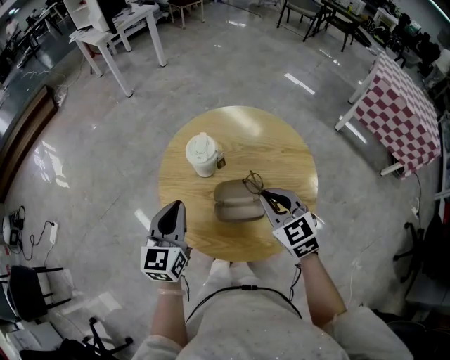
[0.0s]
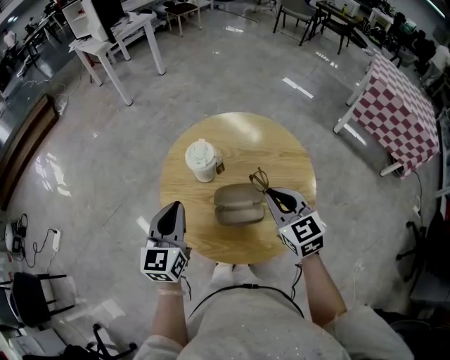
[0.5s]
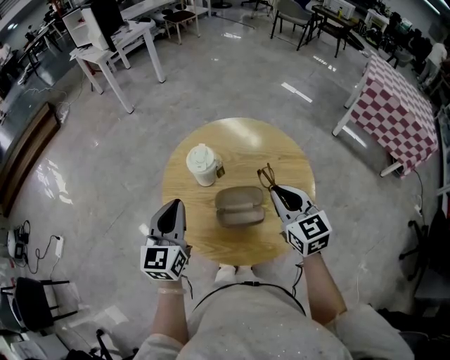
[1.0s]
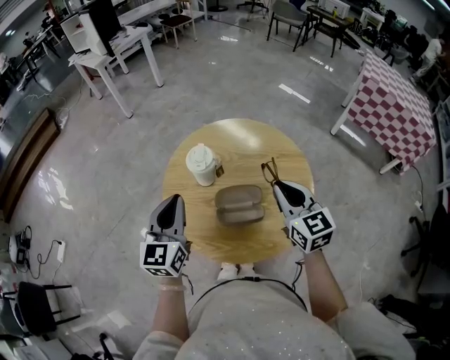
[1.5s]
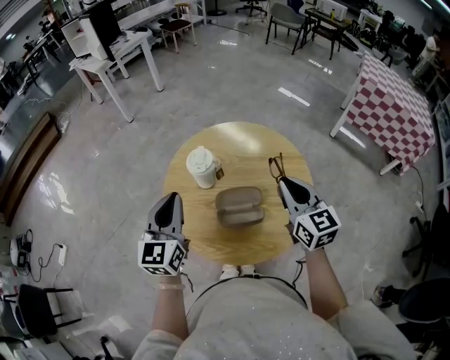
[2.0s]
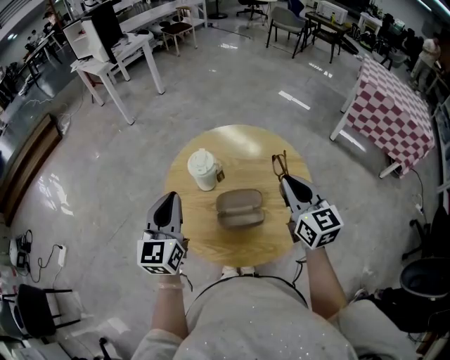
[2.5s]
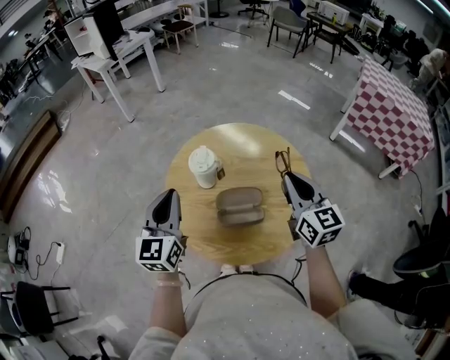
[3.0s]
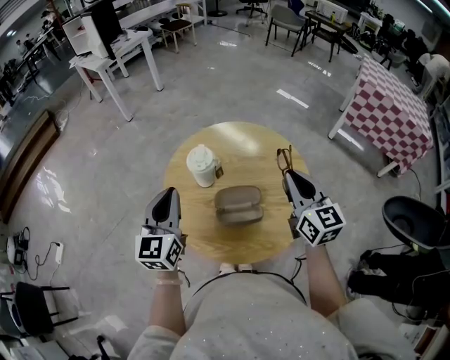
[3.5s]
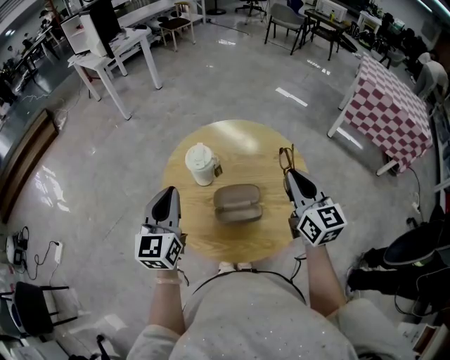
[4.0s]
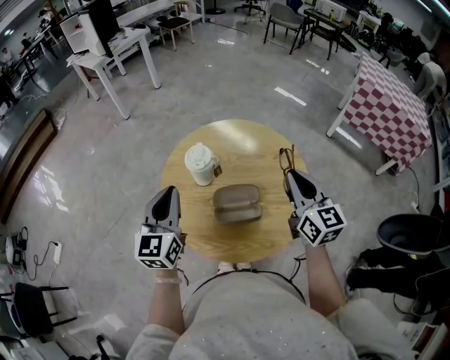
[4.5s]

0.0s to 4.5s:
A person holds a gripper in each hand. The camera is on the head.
0.0s to 2.0s: The left gripper goes roughly 5 cm upward. Meanwhile the right gripper is displaced upward and to the right by about 10 cm, and changes its angle by about 30 degrees.
2.0s to 4.5s: The grippers move only a little.

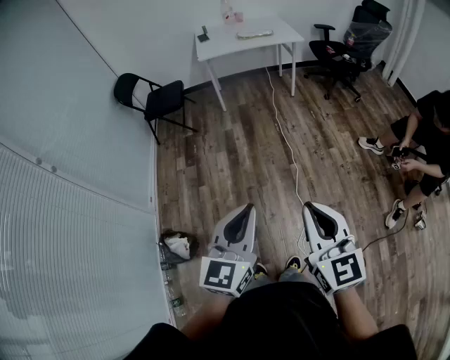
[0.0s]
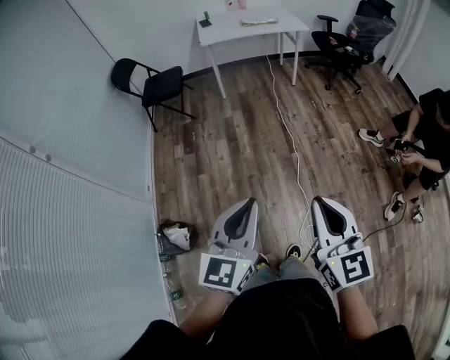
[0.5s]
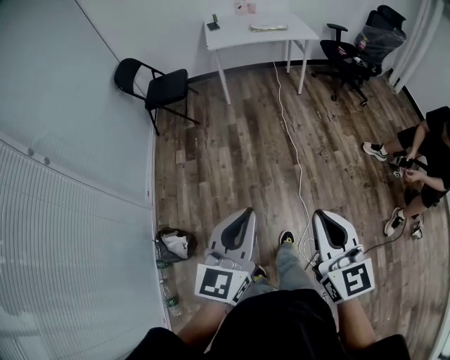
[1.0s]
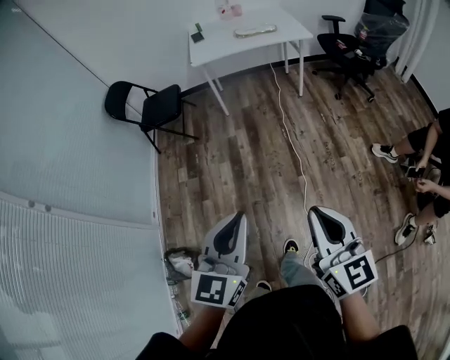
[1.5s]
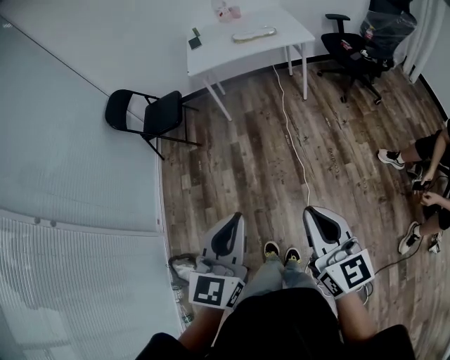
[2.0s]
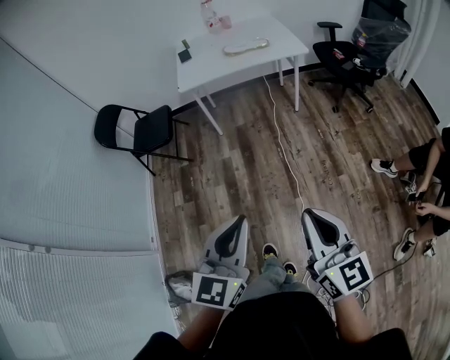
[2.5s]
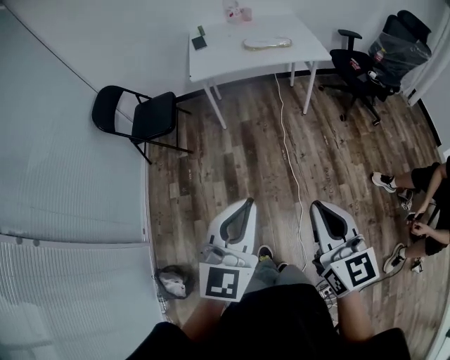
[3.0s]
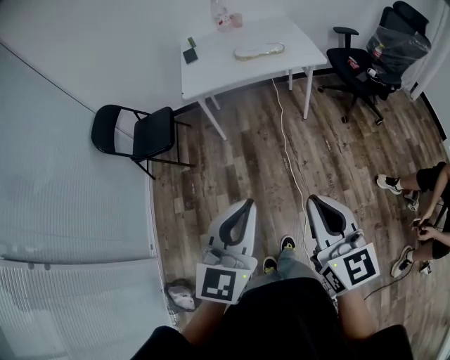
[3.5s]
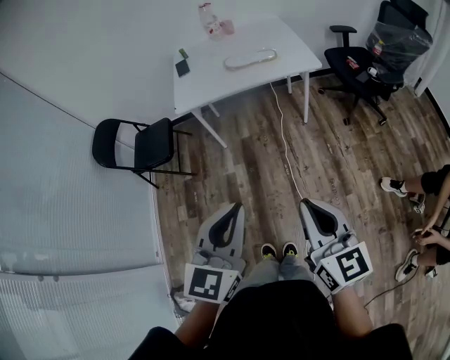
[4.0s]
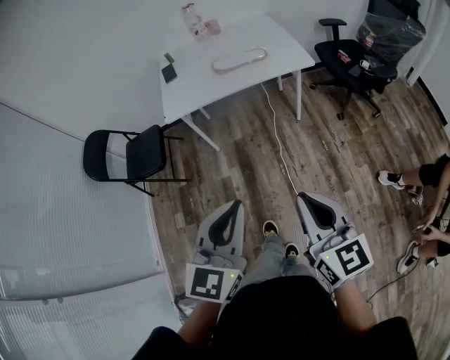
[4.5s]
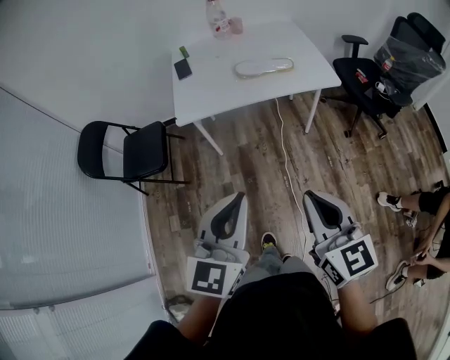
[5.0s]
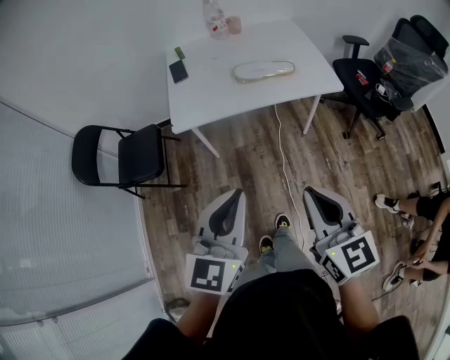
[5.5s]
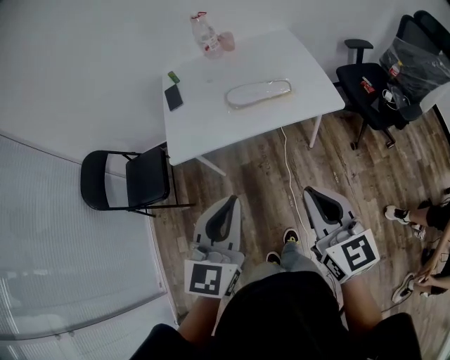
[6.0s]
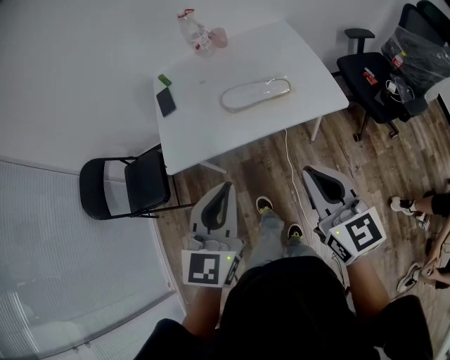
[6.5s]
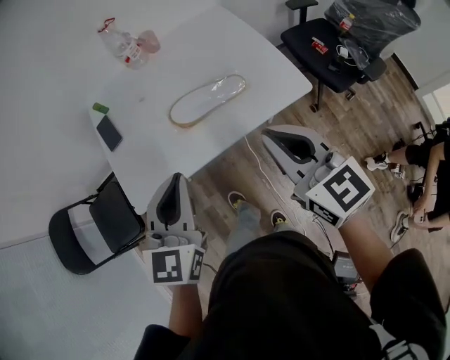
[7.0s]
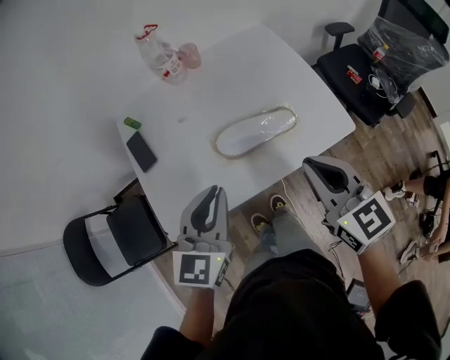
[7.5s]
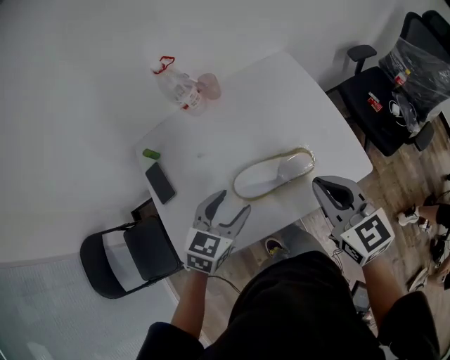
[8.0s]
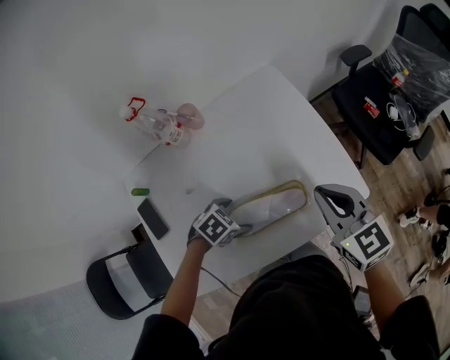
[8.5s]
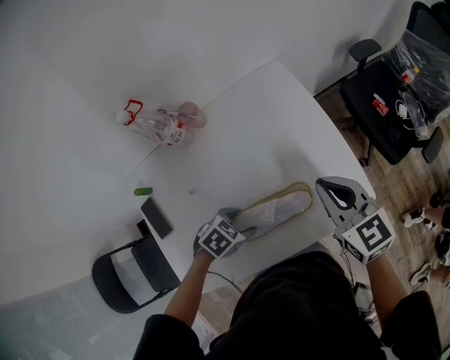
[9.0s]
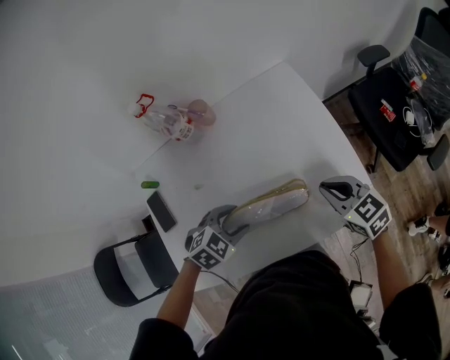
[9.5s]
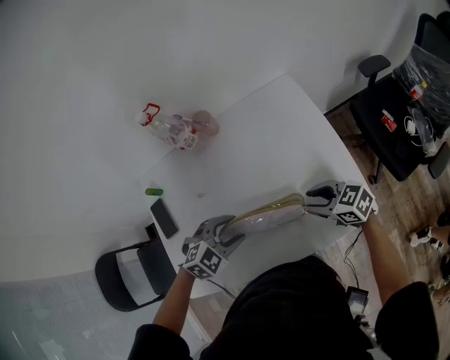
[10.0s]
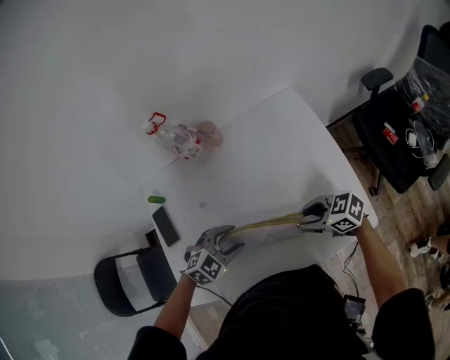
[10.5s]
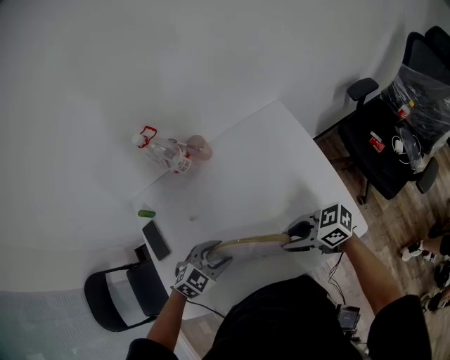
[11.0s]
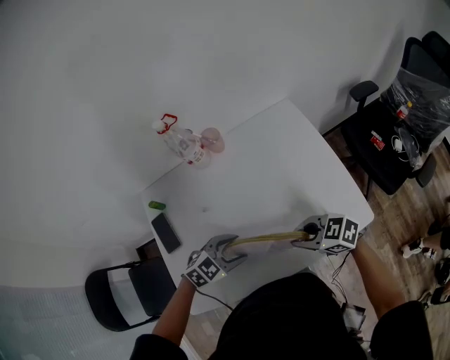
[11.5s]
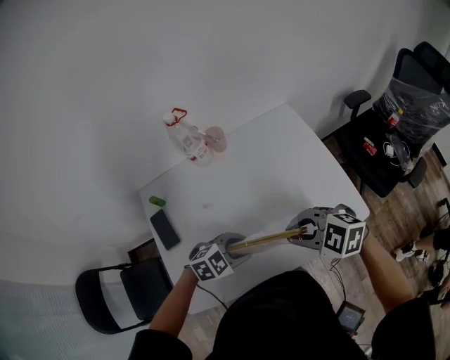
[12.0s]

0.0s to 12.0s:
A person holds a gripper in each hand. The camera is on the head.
0.0s to 2.0s: The two grippers go some 30 cm forward.
2.0s to 4.0s: Both grippers travel together forward, some 30 cm.
4.0s to 6.0s: The grippers both shift forward by approximately 35 cm.
6.0s to 8.0s: Both grippers are carried forward, approximately 40 cm. The left gripper rotates about 40 degrees, and opens its fingers.
8.0s to 10.0s: The right gripper shifts roughly 20 cm downward, rotates roughly 40 degrees, and opens its fingers. The left gripper moves downward, about 10 cm, changes its angle by roughly 40 degrees, and opens and closes again.
10.0s to 12.0s: The right gripper moves some 20 cm, turns by some 40 degrees, and closes, while the left gripper moves some 5 cm.

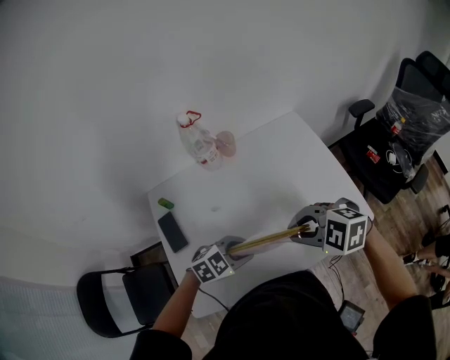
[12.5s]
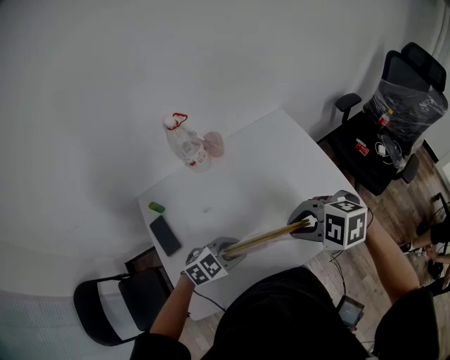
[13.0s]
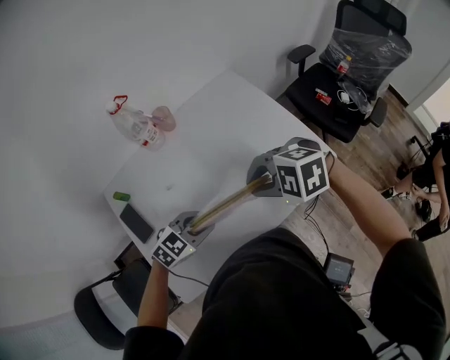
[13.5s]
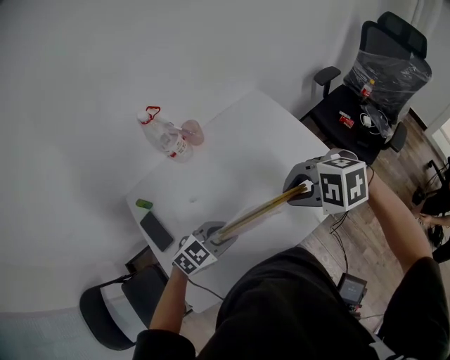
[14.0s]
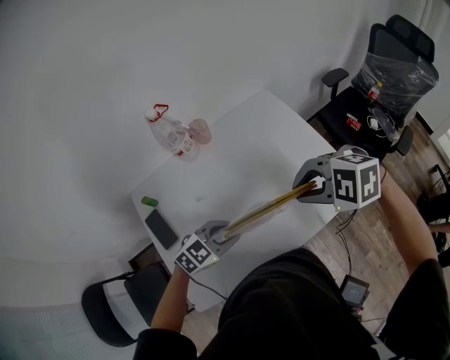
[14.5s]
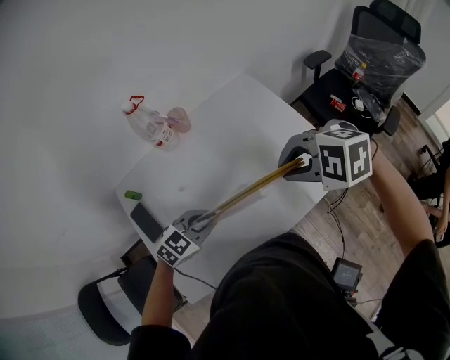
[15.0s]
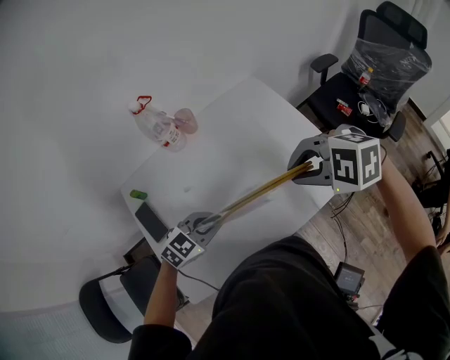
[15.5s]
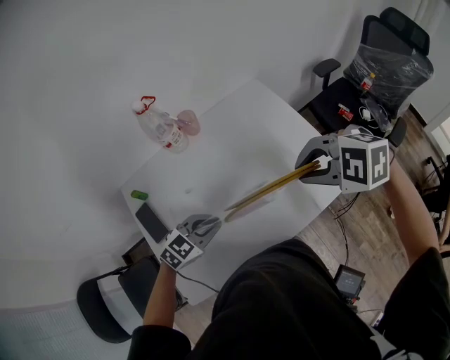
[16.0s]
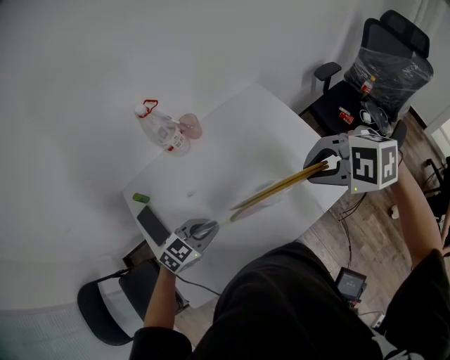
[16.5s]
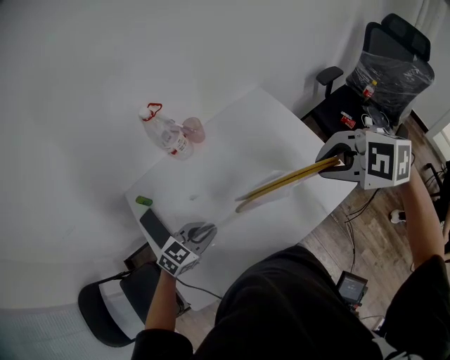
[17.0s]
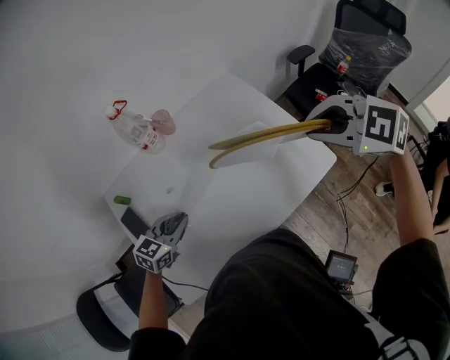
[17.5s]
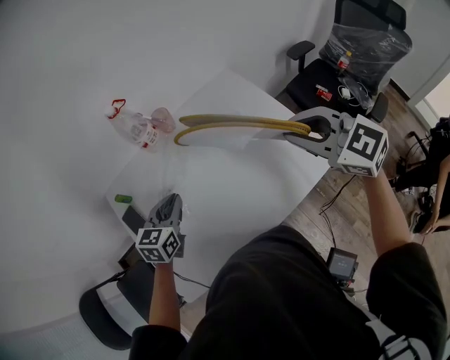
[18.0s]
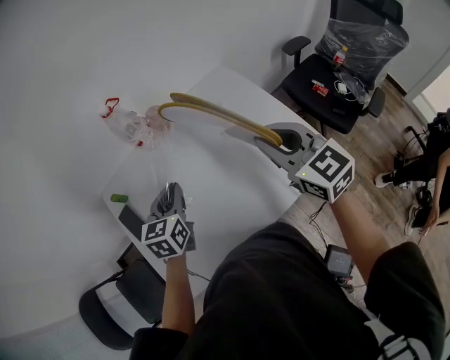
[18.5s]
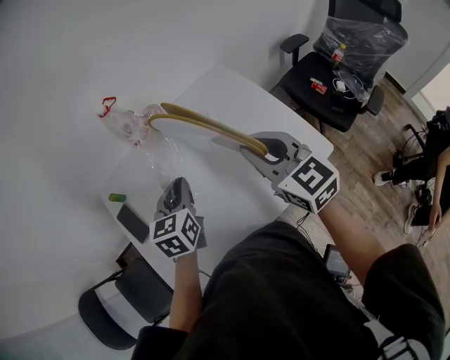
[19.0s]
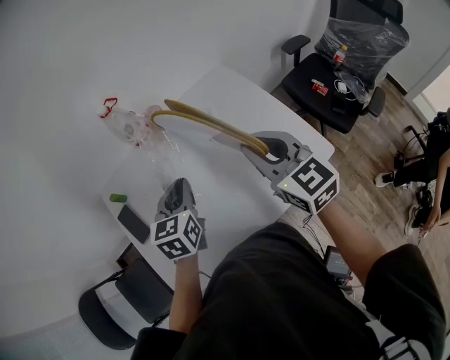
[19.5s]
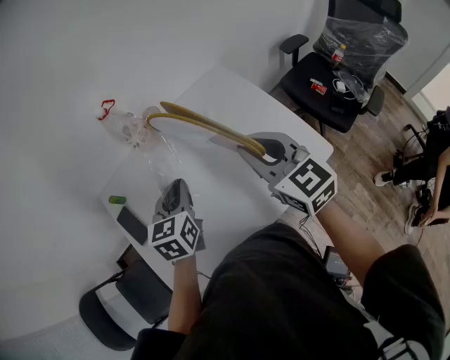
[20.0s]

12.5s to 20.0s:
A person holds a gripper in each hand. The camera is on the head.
12.5s to 14.5s: The right gripper changes place by approximately 5 cm.
14.5s to 16.5s: The right gripper shifts by about 5 cm.
16.5s to 18.0s: The left gripper ends up about 10 cm from where it was, and swivels about 40 degrees. Meanwhile the right gripper moves about 5 cm, and angles its fingers upward, by about 30 degrees.
18.0s to 20.0s: The right gripper shifts some 5 cm to the left, and rotates roughly 20 degrees, while the left gripper travels to the right by approximately 5 cm.

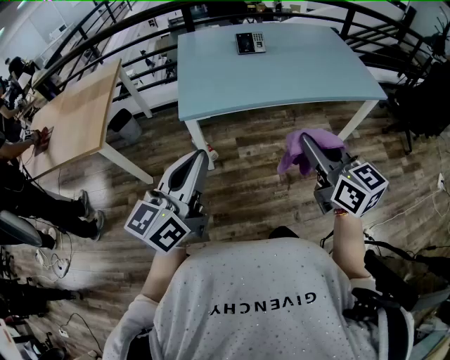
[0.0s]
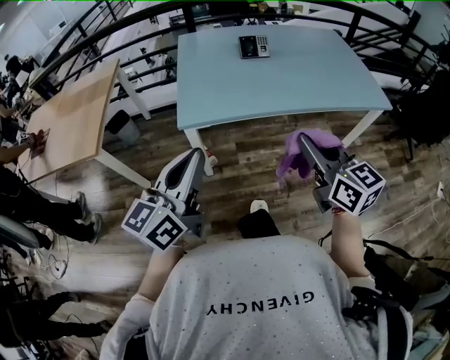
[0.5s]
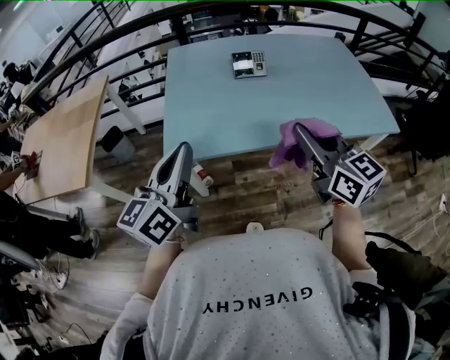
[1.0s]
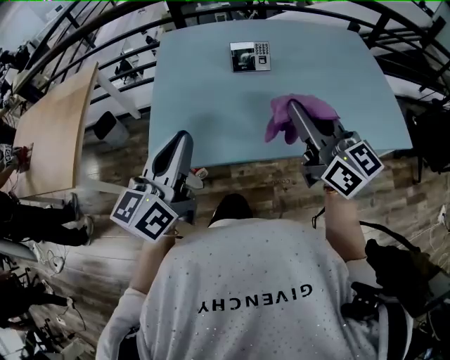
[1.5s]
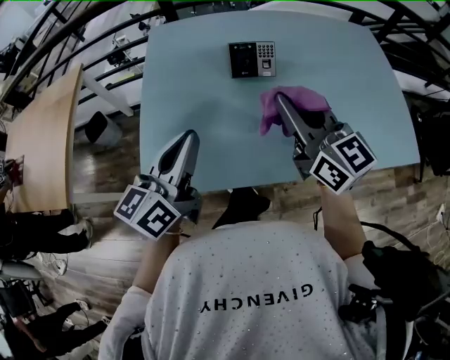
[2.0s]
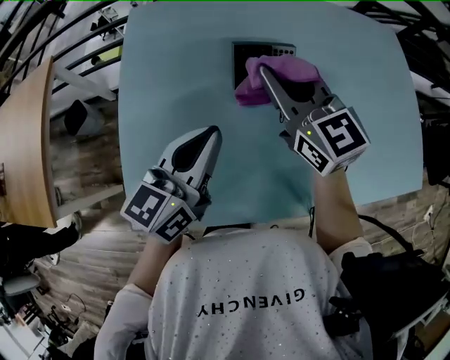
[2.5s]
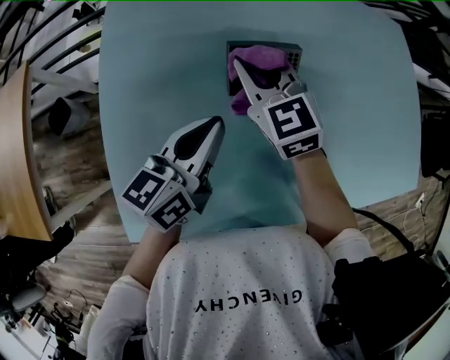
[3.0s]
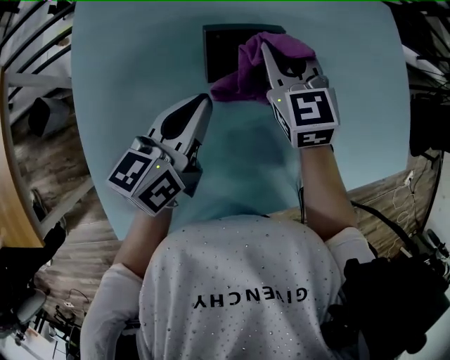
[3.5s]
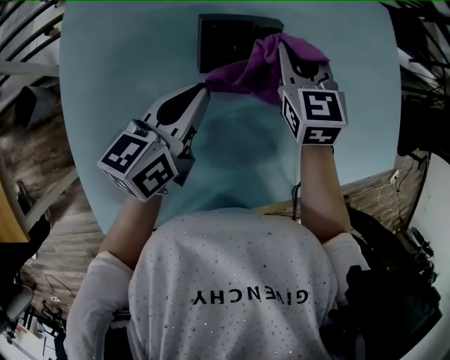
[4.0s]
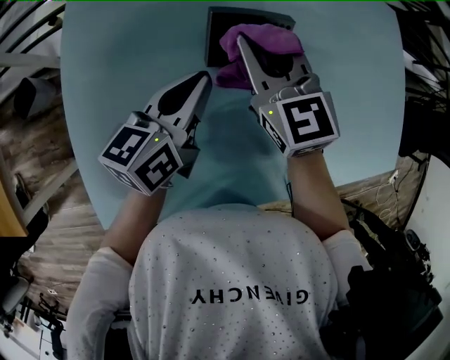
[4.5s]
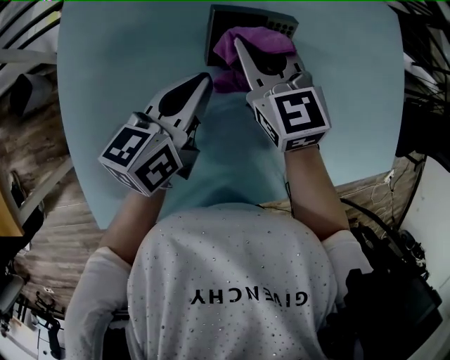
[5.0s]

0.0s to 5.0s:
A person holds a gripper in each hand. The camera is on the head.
0.0s to 2.5s: The two grippers travel together, forward, about 70 cm.
2.5s to 5.0s: The right gripper moves left and right over approximately 15 cm, changing direction 2 times. Meanwhile the left gripper heads forward and downward, covering some 15 cm.
